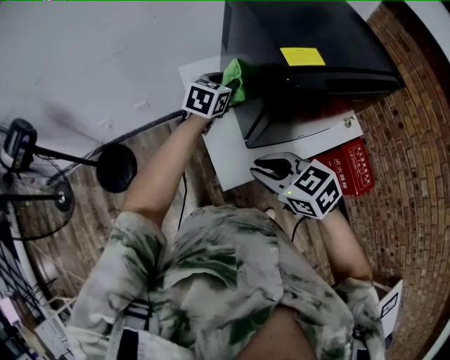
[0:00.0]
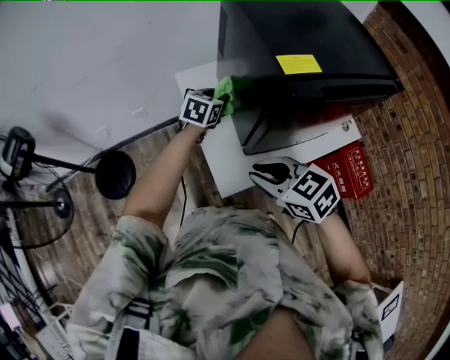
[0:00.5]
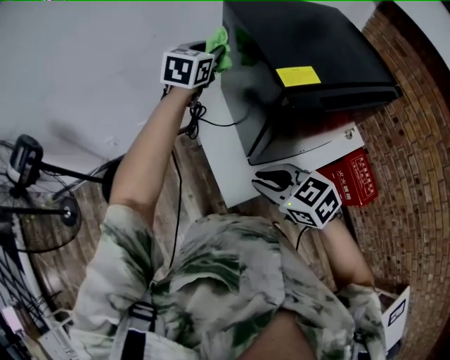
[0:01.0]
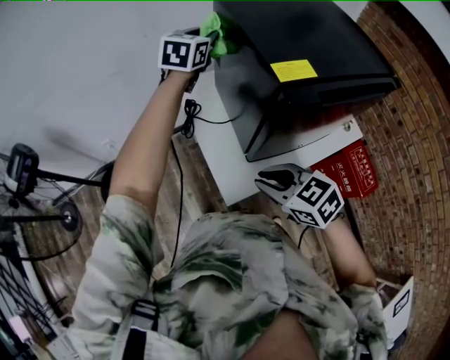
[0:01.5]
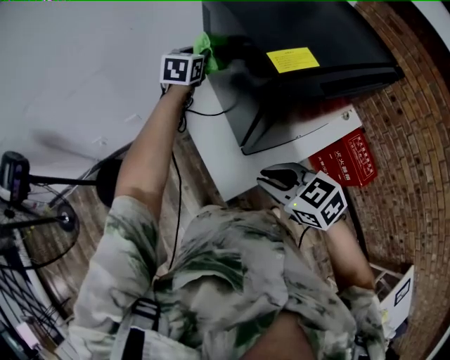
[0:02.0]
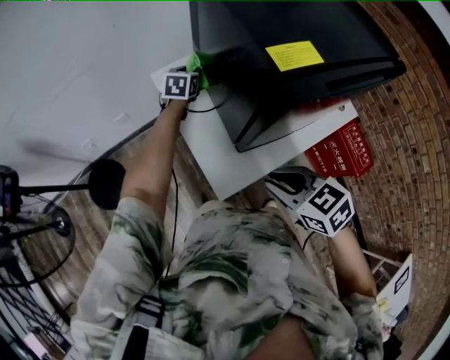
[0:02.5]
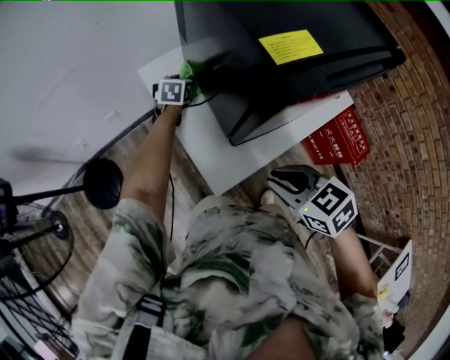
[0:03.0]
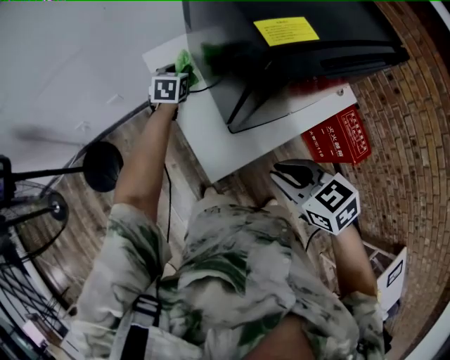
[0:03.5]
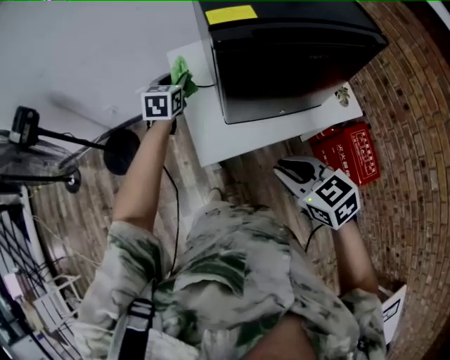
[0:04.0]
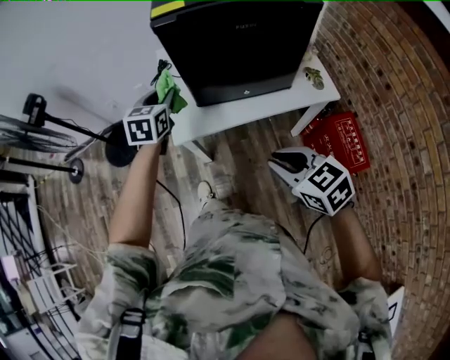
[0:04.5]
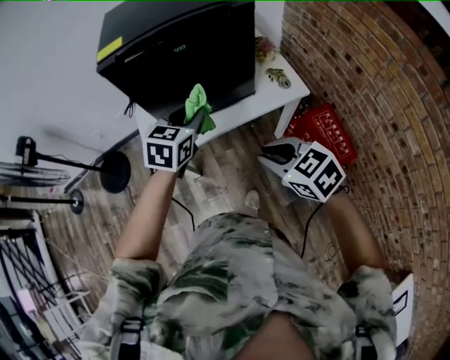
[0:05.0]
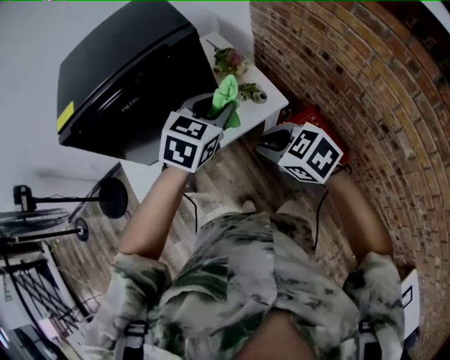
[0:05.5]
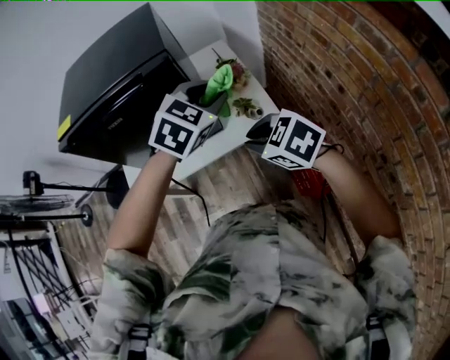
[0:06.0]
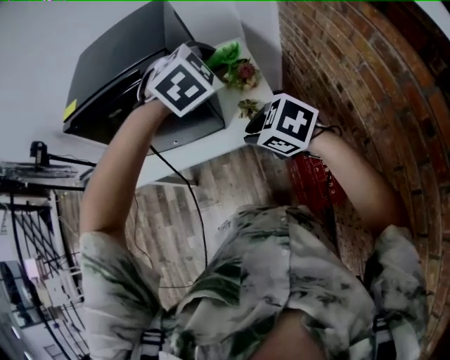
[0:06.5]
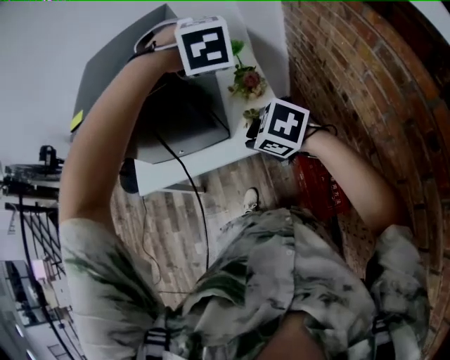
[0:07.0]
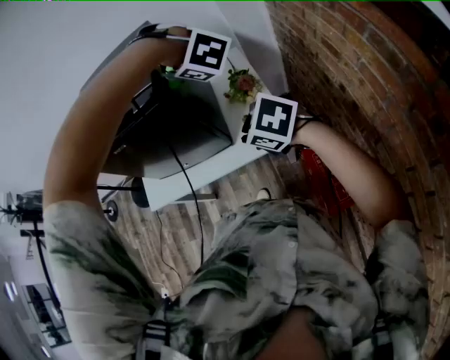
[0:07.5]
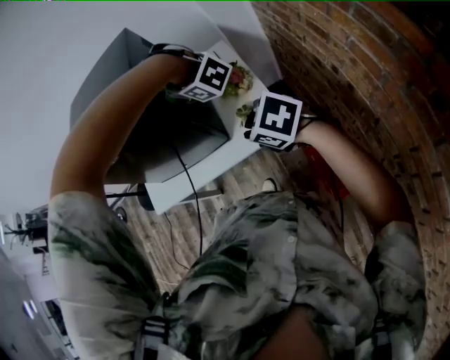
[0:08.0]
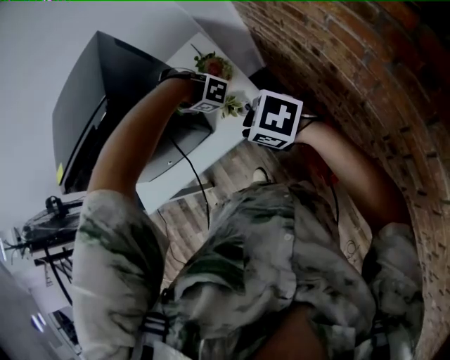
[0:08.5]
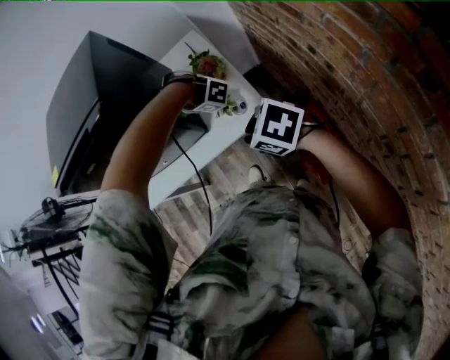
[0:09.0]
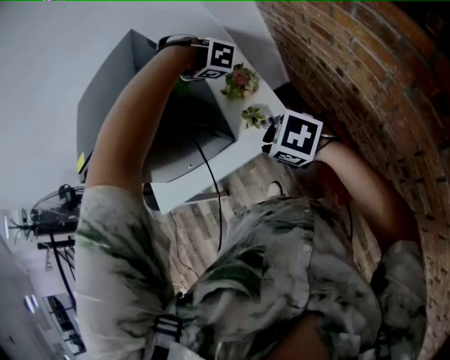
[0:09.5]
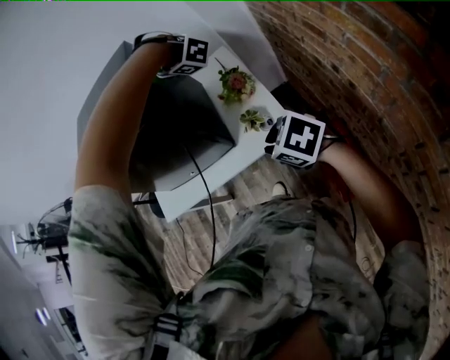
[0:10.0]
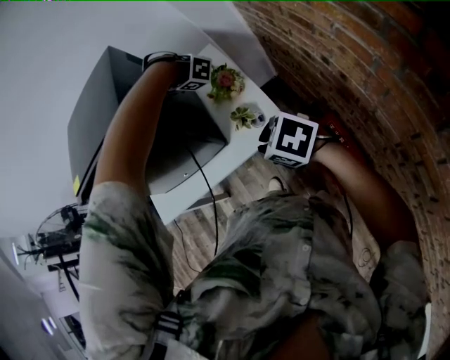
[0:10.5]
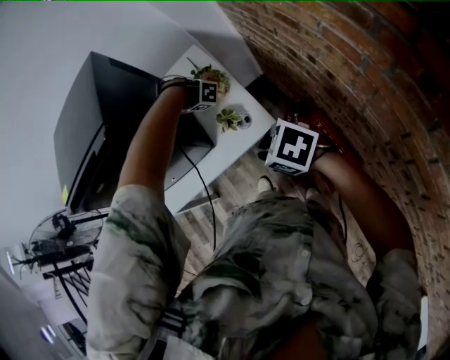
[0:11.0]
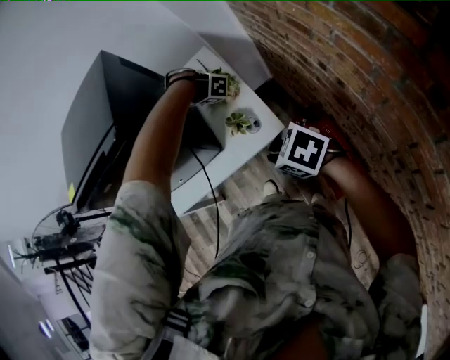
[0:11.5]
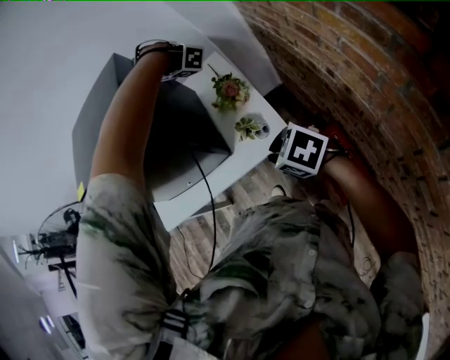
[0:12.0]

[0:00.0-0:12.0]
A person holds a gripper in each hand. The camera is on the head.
0:00.0 to 0:02.0: The left gripper moves up and down over some 20 cm, changing direction 2 times.
0:02.0 to 0:04.0: The left gripper shifts roughly 20 cm backward, and goes downward and returns, roughly 20 cm each way. The right gripper travels to the right and backward by approximately 15 cm.
0:04.0 to 0:06.0: Both grippers move to the right, some 50 cm. The left gripper rotates approximately 40 degrees.
0:06.0 to 0:08.0: The left gripper moves roughly 15 cm, and rotates some 110 degrees; the right gripper shifts by roughly 10 cm.
0:08.0 to 0:10.0: The left gripper is displaced to the right by approximately 10 cm, and reaches about 20 cm downward, then returns. The right gripper ends up approximately 5 cm from where it was.
0:10.0 to 0:12.0: The left gripper heads to the right, covering about 5 cm, and travels downward and back again, roughly 20 cm each way.

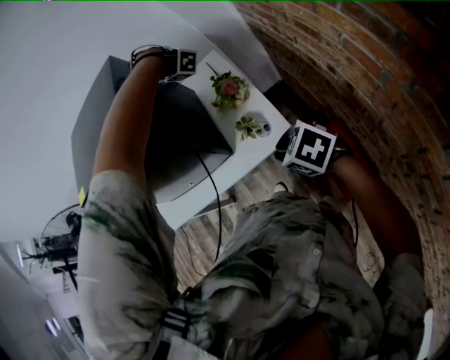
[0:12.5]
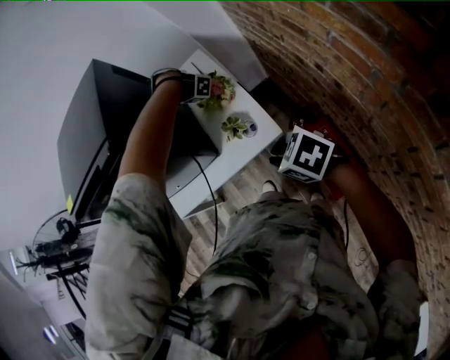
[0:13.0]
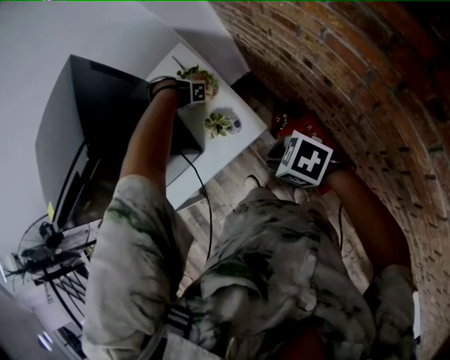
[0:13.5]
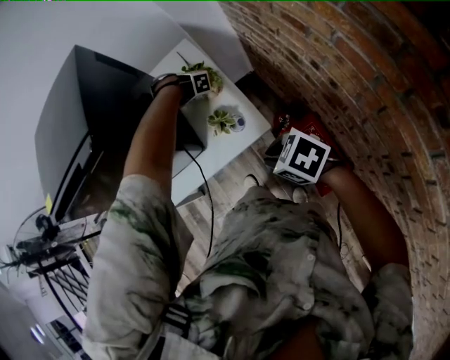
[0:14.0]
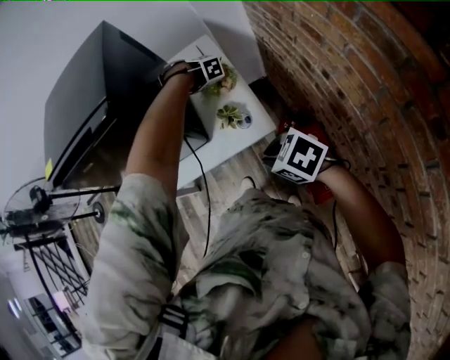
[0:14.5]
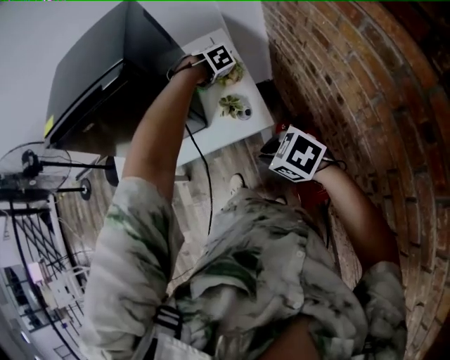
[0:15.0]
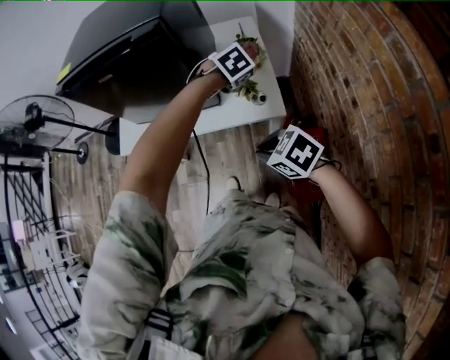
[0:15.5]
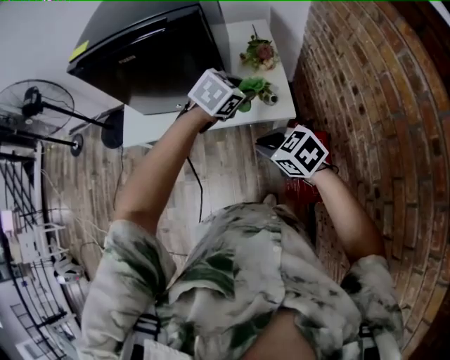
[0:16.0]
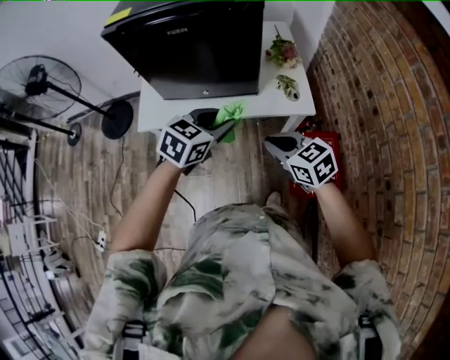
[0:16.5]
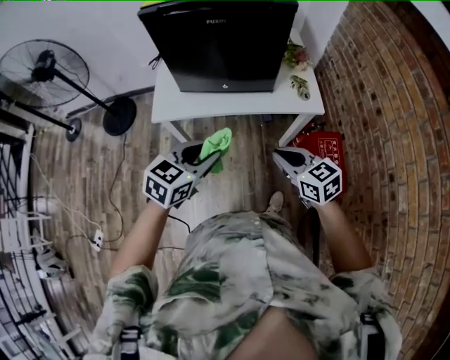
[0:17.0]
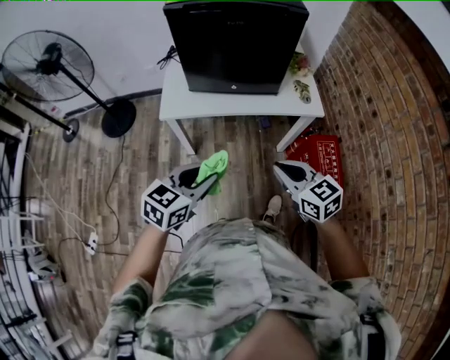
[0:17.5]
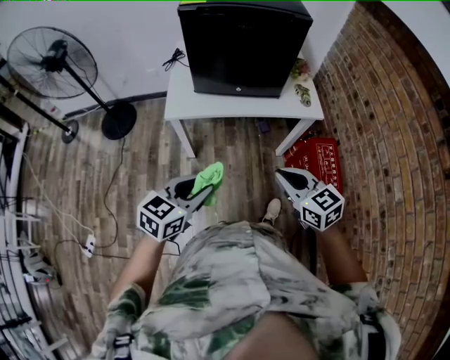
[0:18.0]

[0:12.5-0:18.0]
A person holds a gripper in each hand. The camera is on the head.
0:12.5 to 0:14.5: The left gripper moves downward, roughly 20 cm, and changes its angle by some 40 degrees.
0:14.5 to 0:16.0: The left gripper shifts by about 30 cm, and rotates some 70 degrees, while the right gripper ends up about 10 cm from where it was.
0:16.0 to 0:18.0: The left gripper moves to the left and backward, about 60 cm, and rotates approximately 30 degrees. Meanwhile the right gripper shifts roughly 30 cm backward and to the left, and rotates roughly 30 degrees.

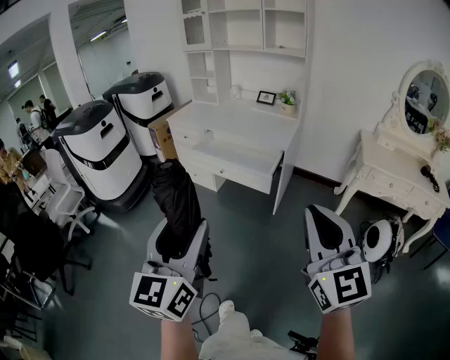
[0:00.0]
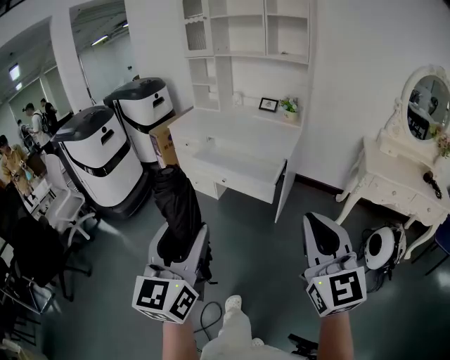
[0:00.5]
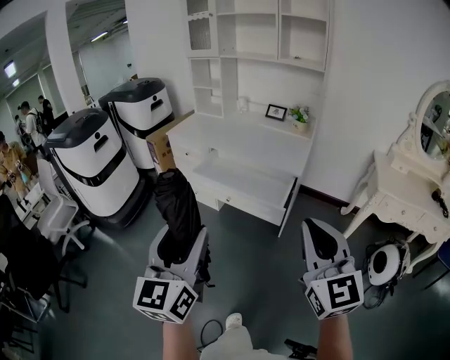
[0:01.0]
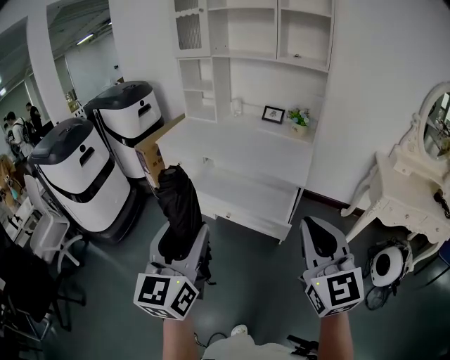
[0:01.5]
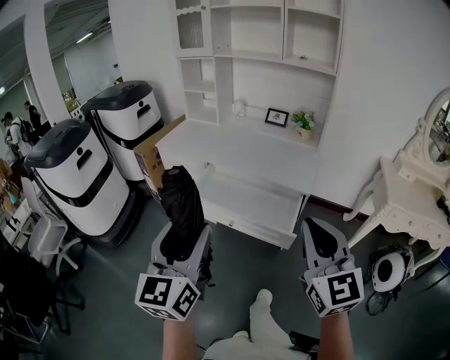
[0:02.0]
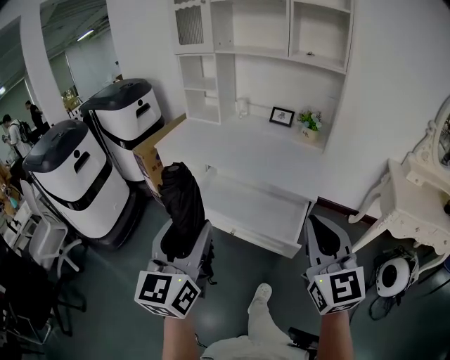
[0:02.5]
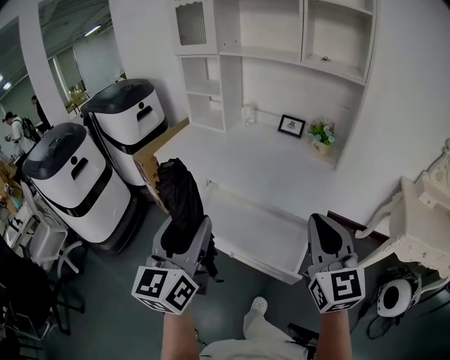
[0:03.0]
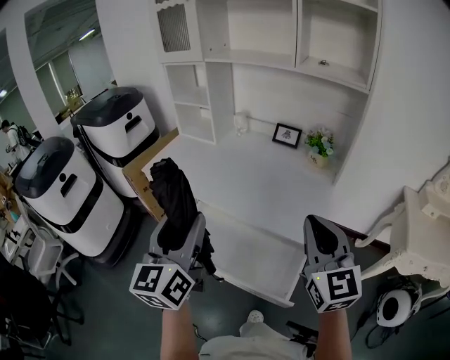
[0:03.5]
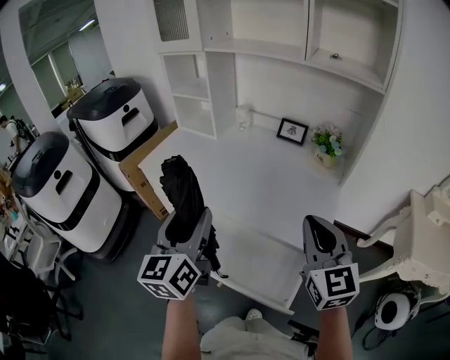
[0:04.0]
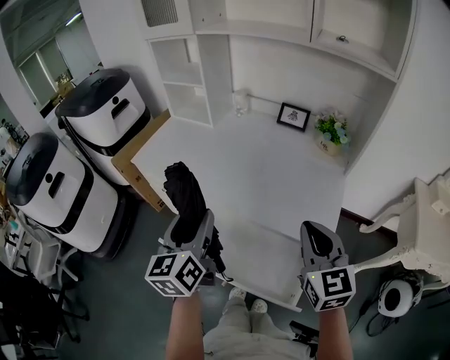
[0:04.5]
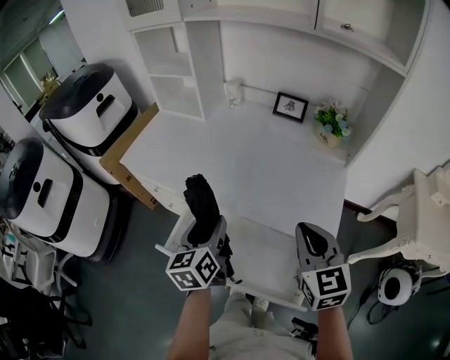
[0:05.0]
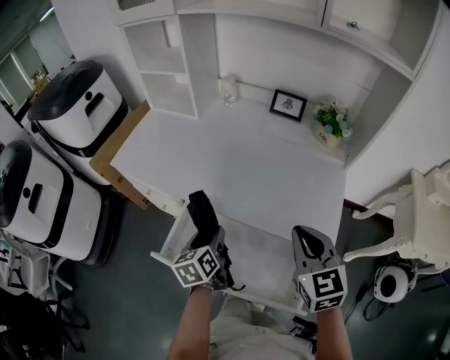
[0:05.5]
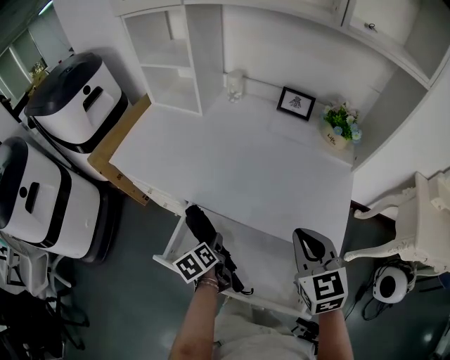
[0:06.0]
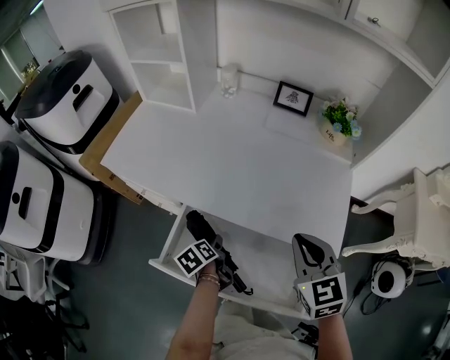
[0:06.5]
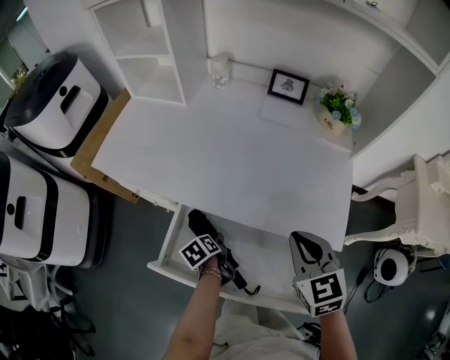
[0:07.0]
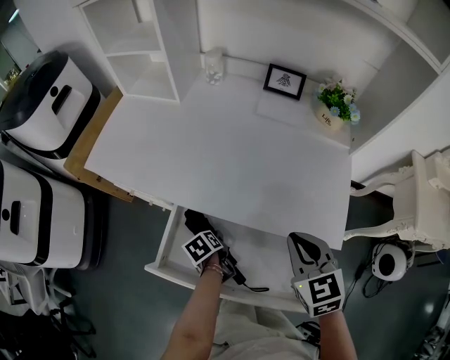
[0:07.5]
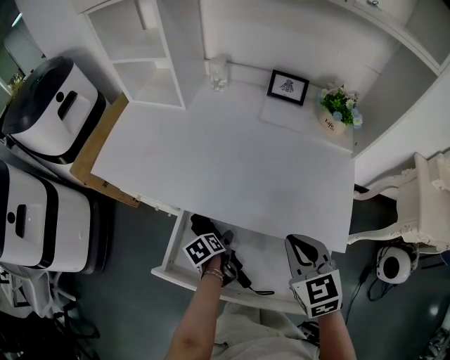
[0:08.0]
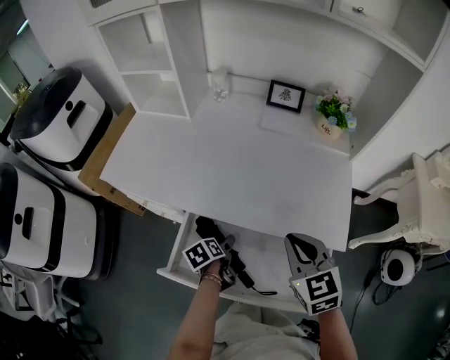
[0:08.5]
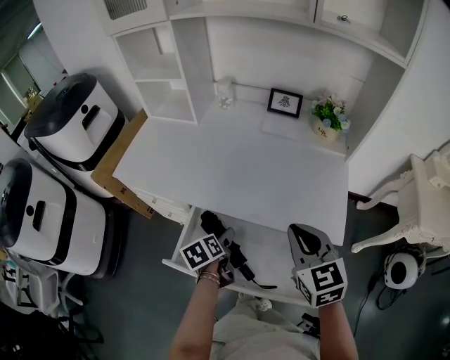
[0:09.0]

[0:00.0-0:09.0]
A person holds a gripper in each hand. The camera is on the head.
0:00.0 to 0:02.0: The grippers both shift forward by some 35 cm.
0:02.0 to 0:04.5: The two grippers go about 40 cm forward. The left gripper changes its angle by roughly 20 degrees.
0:04.5 to 0:07.0: The right gripper is displaced downward and forward by some 15 cm, and swivels about 20 degrees; the left gripper moves downward, some 35 cm, and points its fingers roughly 50 degrees further downward.
0:07.0 to 0:09.0: The right gripper moves upward, about 5 cm; the left gripper travels upward by some 10 cm, and opens its fingers.
